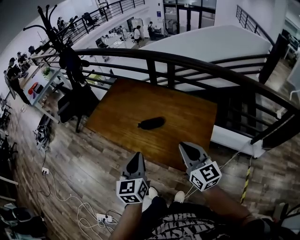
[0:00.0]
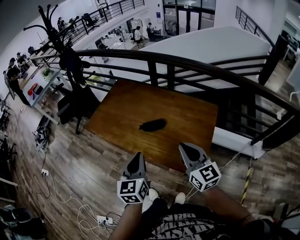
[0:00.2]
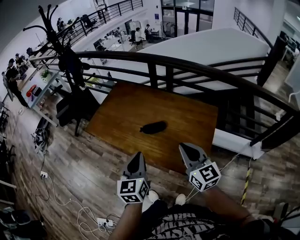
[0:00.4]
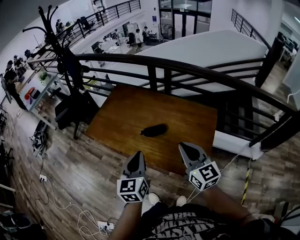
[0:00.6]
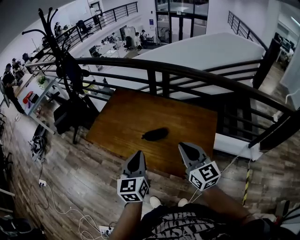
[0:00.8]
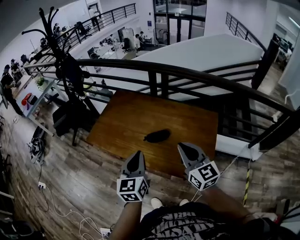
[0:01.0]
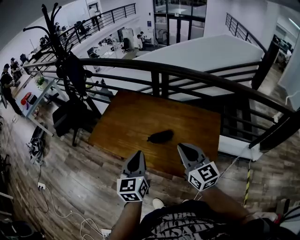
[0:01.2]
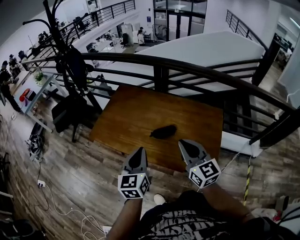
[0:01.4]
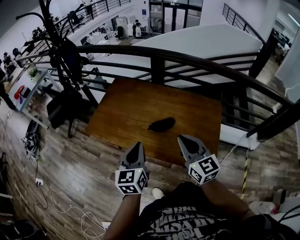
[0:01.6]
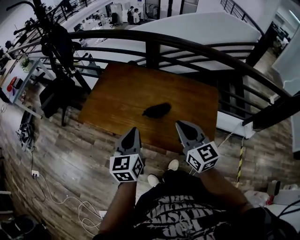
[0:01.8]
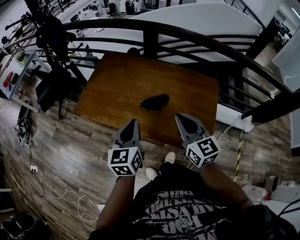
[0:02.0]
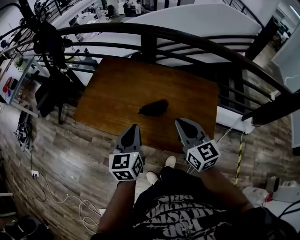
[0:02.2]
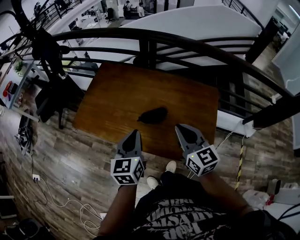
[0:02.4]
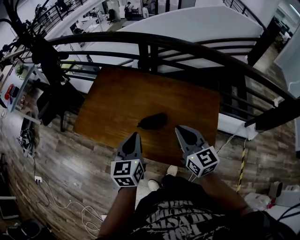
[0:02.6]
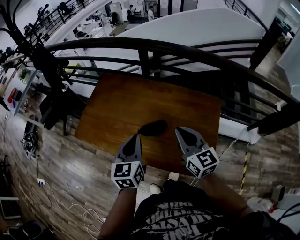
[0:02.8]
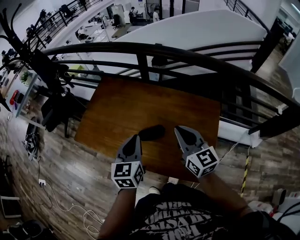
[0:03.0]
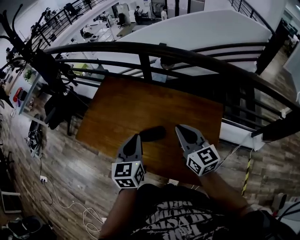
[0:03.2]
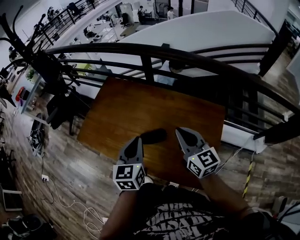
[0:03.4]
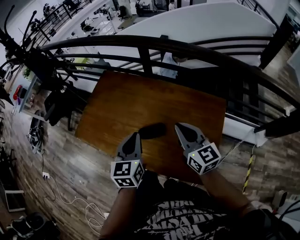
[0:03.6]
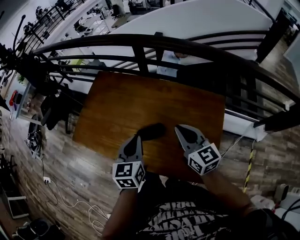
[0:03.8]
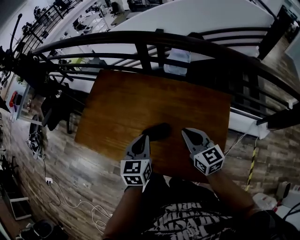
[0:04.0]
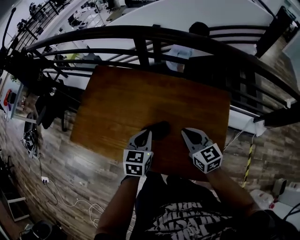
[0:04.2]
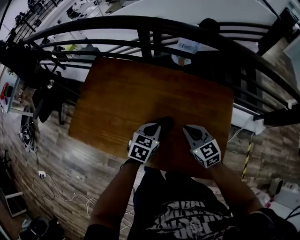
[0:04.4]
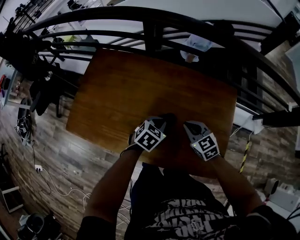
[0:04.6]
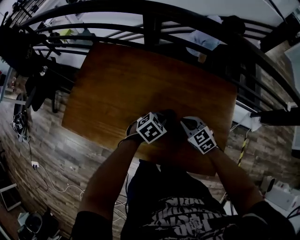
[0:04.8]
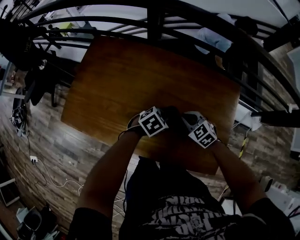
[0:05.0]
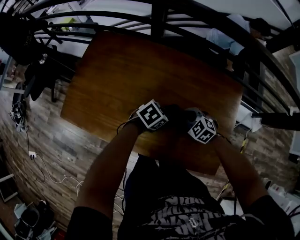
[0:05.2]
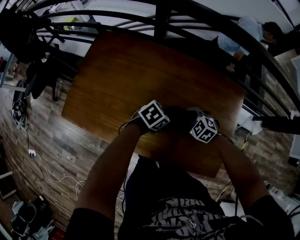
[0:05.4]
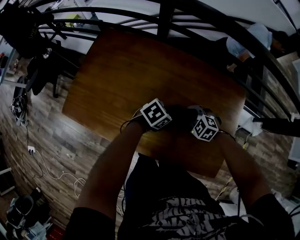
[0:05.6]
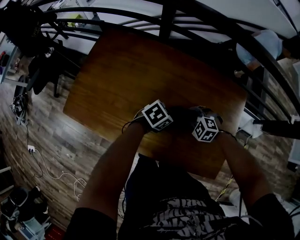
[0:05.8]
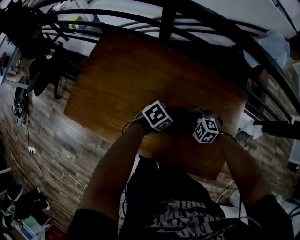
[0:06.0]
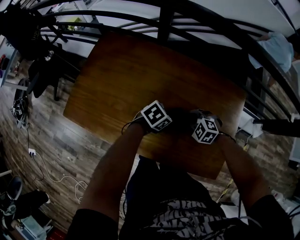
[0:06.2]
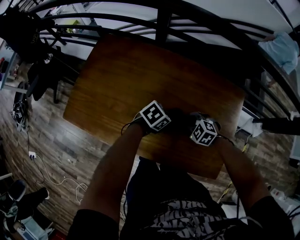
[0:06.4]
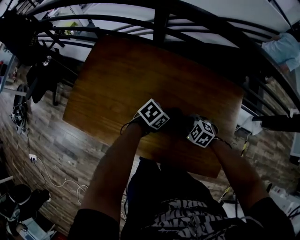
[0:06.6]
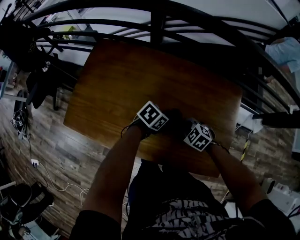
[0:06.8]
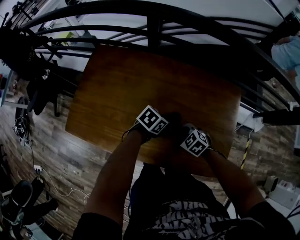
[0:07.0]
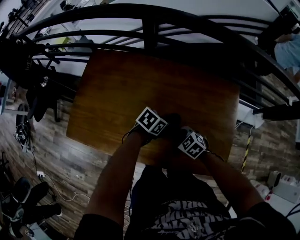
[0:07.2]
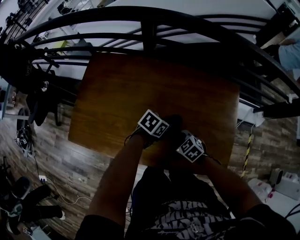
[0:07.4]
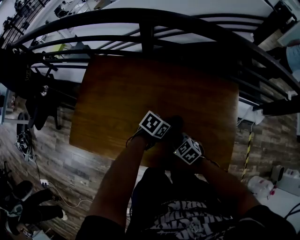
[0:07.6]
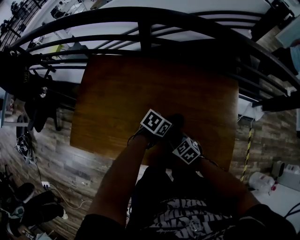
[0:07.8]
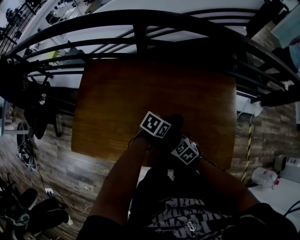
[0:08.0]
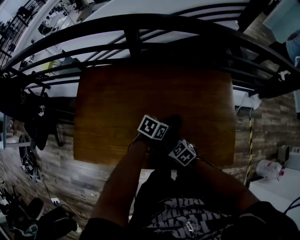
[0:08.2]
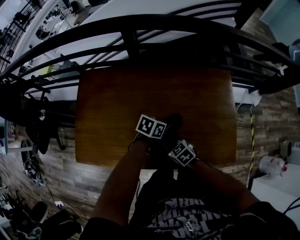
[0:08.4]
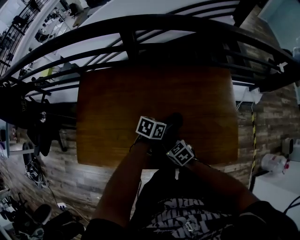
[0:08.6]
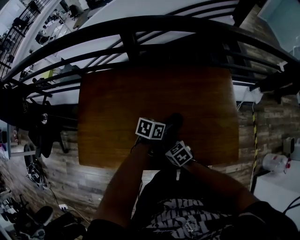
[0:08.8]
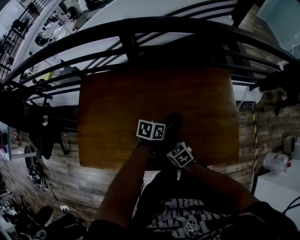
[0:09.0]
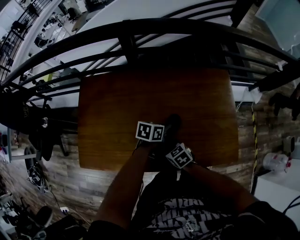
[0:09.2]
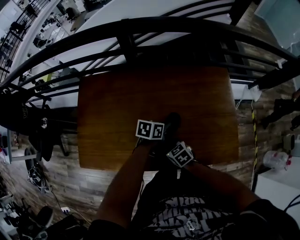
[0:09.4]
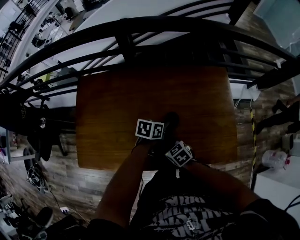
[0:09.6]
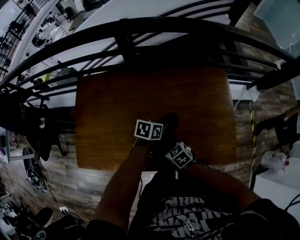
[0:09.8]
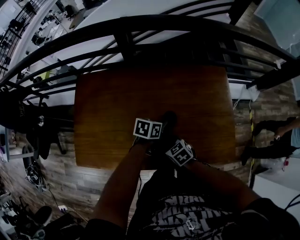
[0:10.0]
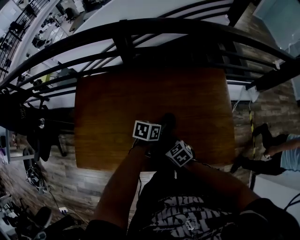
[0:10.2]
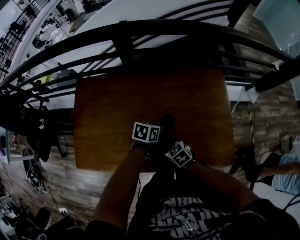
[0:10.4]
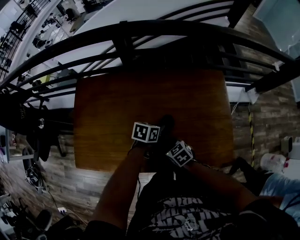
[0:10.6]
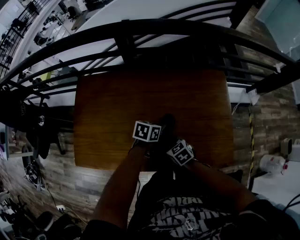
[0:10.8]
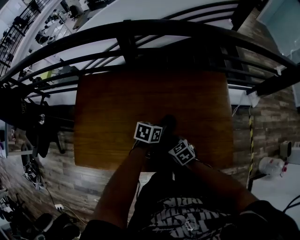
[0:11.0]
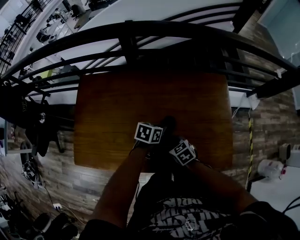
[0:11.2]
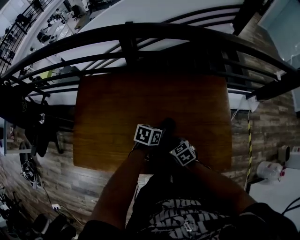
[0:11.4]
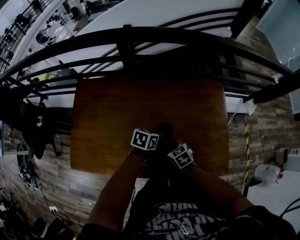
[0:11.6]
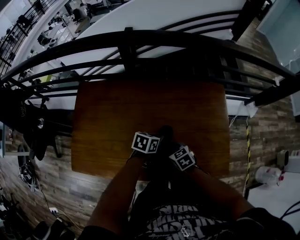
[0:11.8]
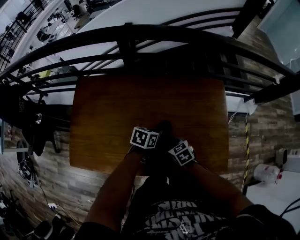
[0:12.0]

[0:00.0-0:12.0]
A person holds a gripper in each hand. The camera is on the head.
0:00.0 to 0:01.6: The two grippers go roughly 15 cm to the left and forward.
0:01.6 to 0:03.0: Both grippers move forward and to the right, approximately 15 cm.
0:03.0 to 0:04.4: Both grippers travel together downward, roughly 20 cm. The right gripper swivels roughly 20 degrees; the left gripper turns by approximately 40 degrees.
0:04.4 to 0:06.0: The left gripper heads downward, covering approximately 10 cm, and turns by some 30 degrees. Meanwhile the right gripper heads downward, covering some 15 cm, and points its fingers some 30 degrees further downward.
0:06.0 to 0:07.6: The right gripper moves approximately 10 cm, and rotates around the line of its fingers by approximately 40 degrees, clockwise from behind.
0:07.6 to 0:09.0: The right gripper changes place by about 5 cm, and turns by some 30 degrees.
0:09.0 to 0:10.4: The grippers move only a little.
0:10.4 to 0:12.0: The right gripper shifts by about 5 cm.

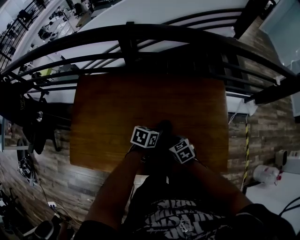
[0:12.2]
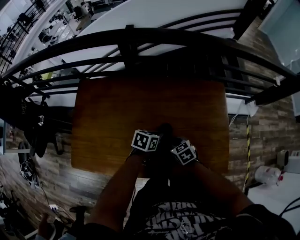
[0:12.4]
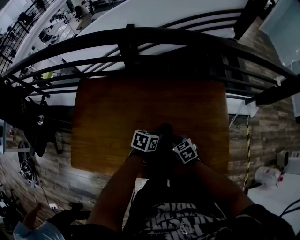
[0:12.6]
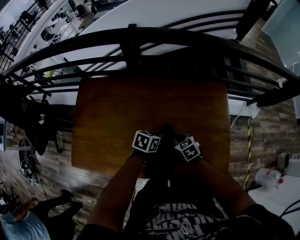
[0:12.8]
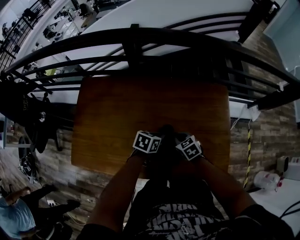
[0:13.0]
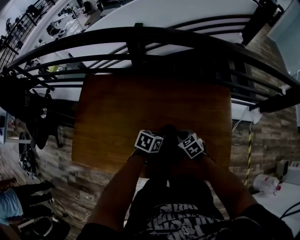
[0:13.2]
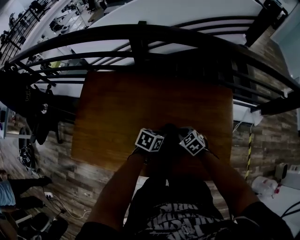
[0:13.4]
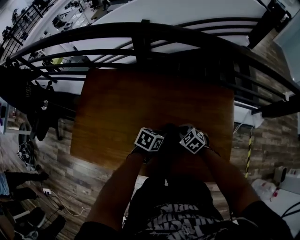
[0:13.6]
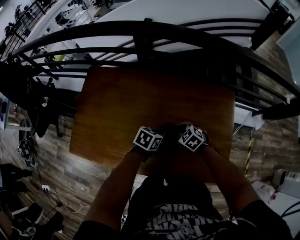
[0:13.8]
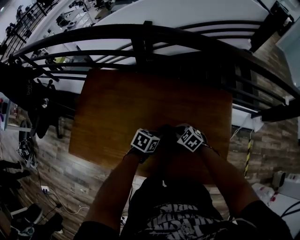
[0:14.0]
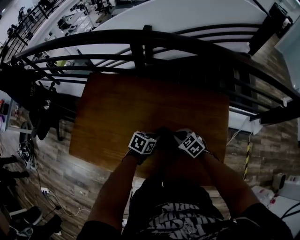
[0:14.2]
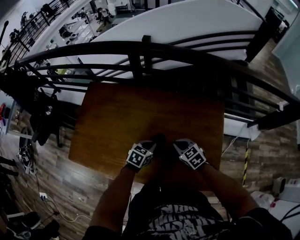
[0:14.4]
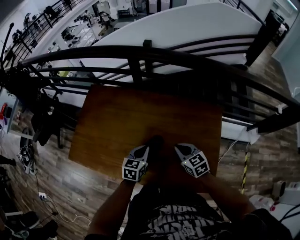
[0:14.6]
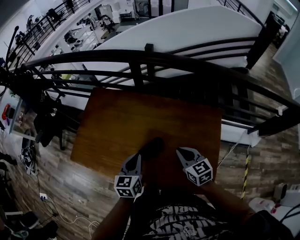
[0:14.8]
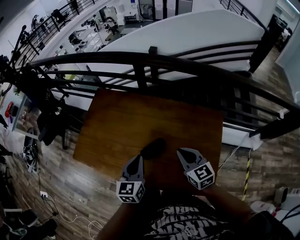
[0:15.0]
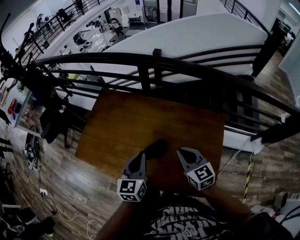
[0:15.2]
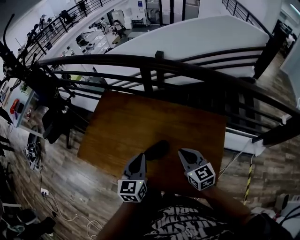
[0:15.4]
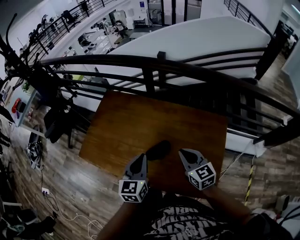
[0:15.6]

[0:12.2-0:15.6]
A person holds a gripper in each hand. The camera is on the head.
0:12.2 to 0:13.8: The right gripper goes roughly 10 cm forward, and swivels roughly 30 degrees.
0:13.8 to 0:15.6: Both grippers move upward, approximately 25 cm. The left gripper swivels roughly 60 degrees; the right gripper tilts its fingers roughly 40 degrees upward.

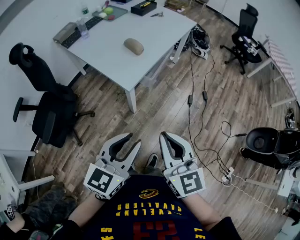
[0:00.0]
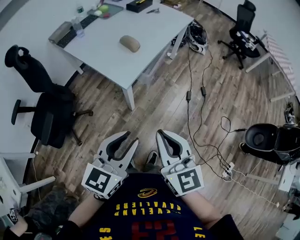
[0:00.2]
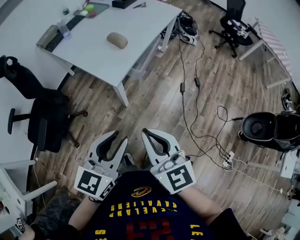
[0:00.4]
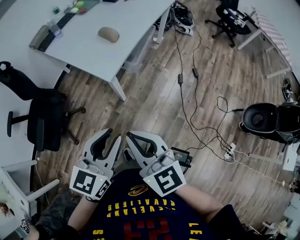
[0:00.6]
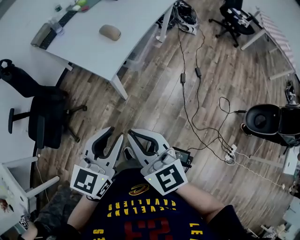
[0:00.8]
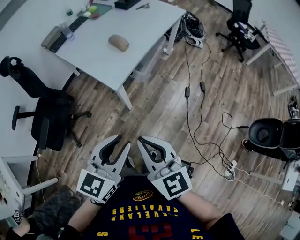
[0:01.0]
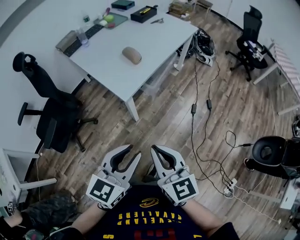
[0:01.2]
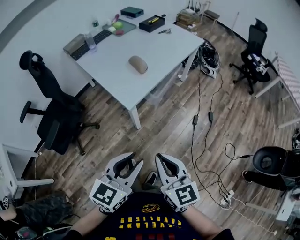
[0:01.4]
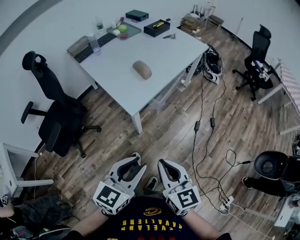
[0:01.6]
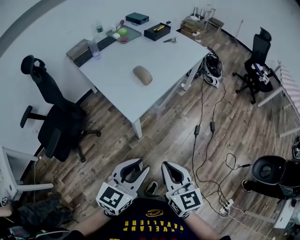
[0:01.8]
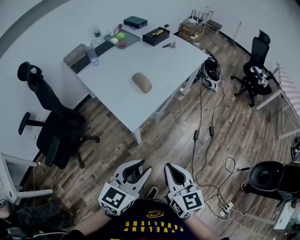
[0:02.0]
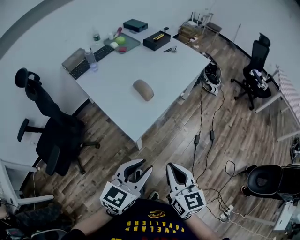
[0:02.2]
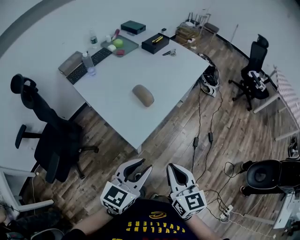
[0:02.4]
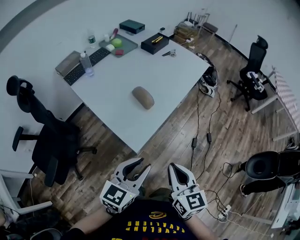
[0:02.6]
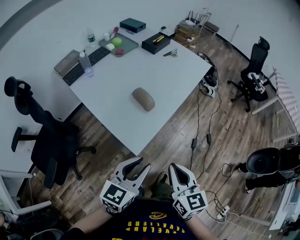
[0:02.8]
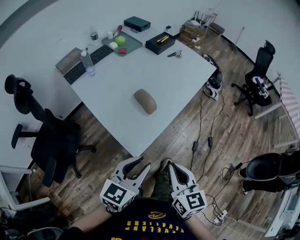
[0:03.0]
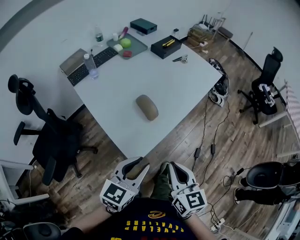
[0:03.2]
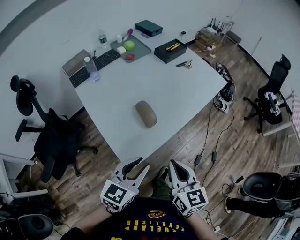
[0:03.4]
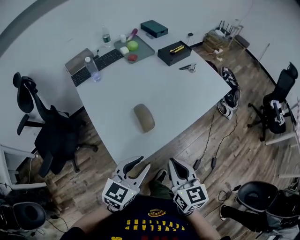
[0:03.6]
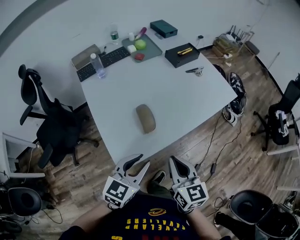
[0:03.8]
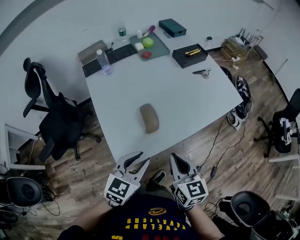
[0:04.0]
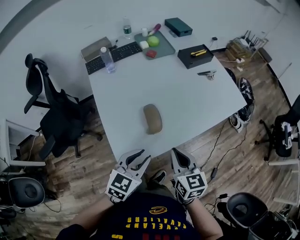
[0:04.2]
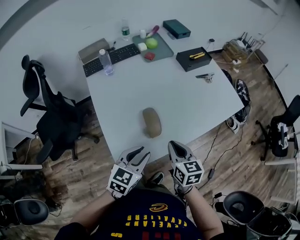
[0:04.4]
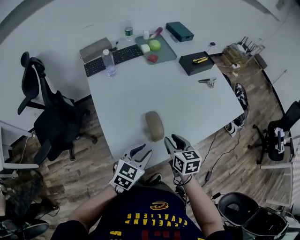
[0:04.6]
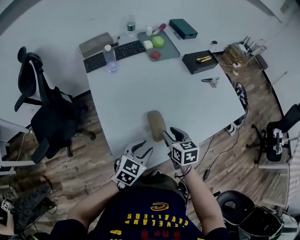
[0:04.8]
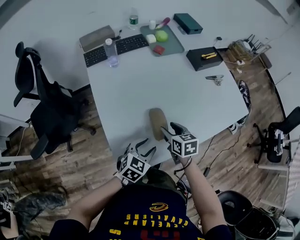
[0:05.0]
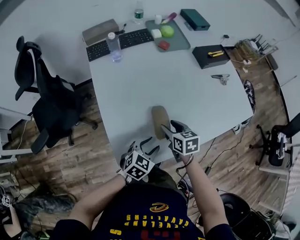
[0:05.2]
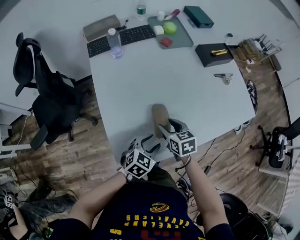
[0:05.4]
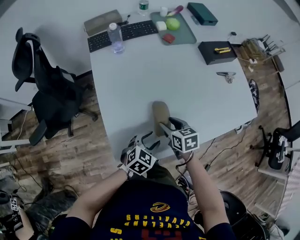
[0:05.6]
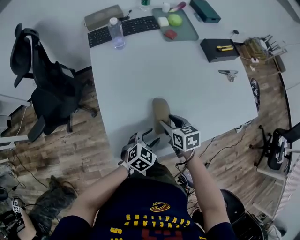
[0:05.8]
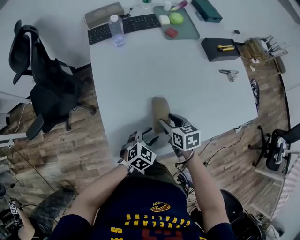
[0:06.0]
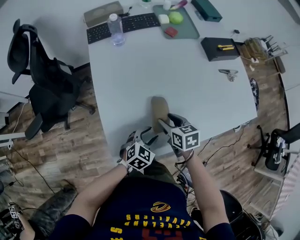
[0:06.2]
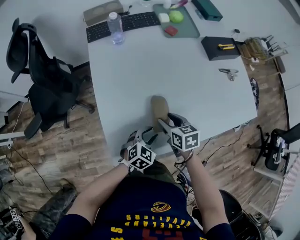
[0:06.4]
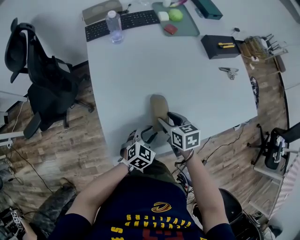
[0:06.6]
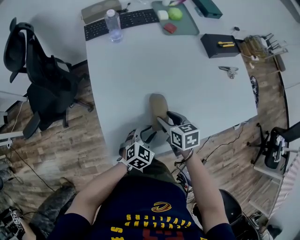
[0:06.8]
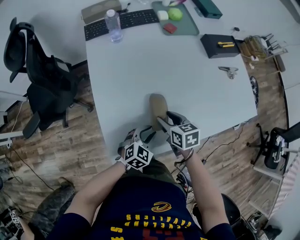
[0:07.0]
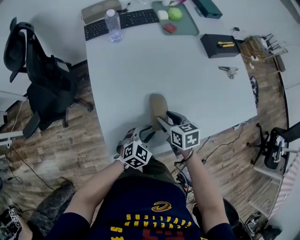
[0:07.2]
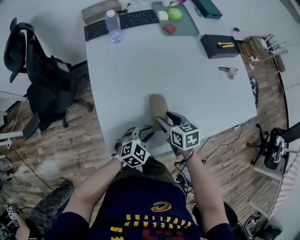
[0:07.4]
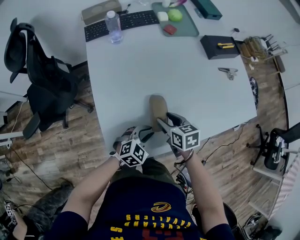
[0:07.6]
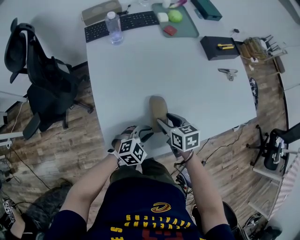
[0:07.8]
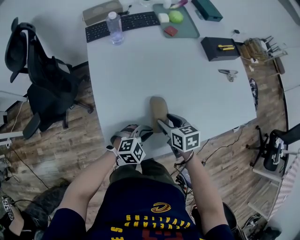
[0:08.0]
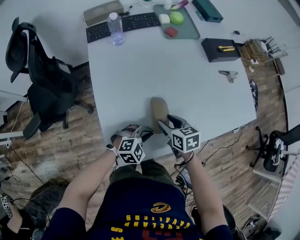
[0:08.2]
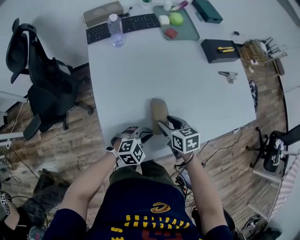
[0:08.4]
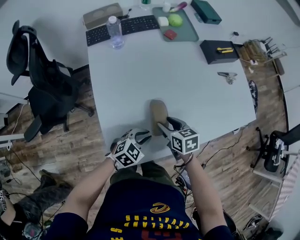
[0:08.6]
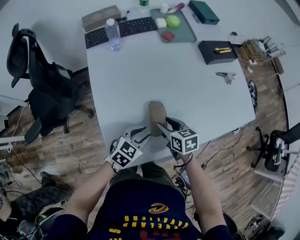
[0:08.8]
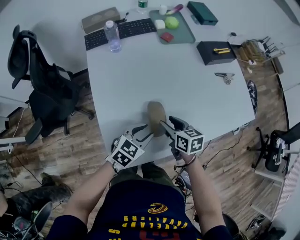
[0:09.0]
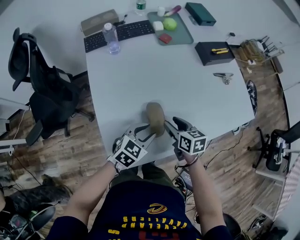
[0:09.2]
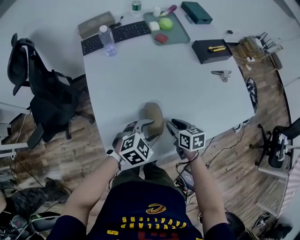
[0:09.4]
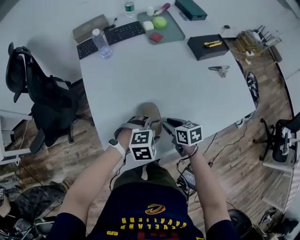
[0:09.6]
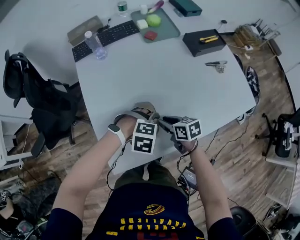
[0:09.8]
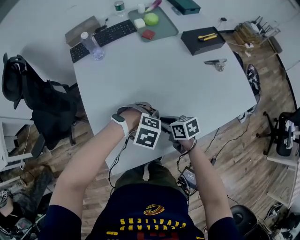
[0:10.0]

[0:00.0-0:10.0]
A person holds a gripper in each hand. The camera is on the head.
0:00.0 to 0:01.4: The right gripper moves downward, about 5 cm, while the left gripper goes approximately 5 cm to the right.
0:01.4 to 0:02.8: The grippers both shift forward by approximately 25 cm.
0:02.8 to 0:04.2: The left gripper changes place by some 20 cm, and rotates some 30 degrees. The right gripper shifts by some 25 cm, and turns by roughly 30 degrees.
0:04.2 to 0:05.8: The right gripper is displaced downward, forward and to the left by some 25 cm, rotates about 30 degrees, and opens its fingers; the left gripper shifts about 20 cm downward and forward.
0:05.8 to 0:07.2: There are only small adjustments of the grippers.
0:08.6 to 0:10.0: The left gripper changes place by some 5 cm, points its fingers about 40 degrees further downward, and opens; the right gripper closes.
